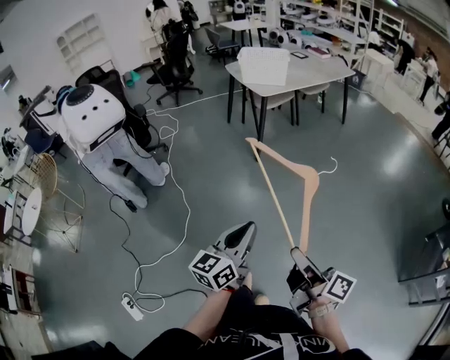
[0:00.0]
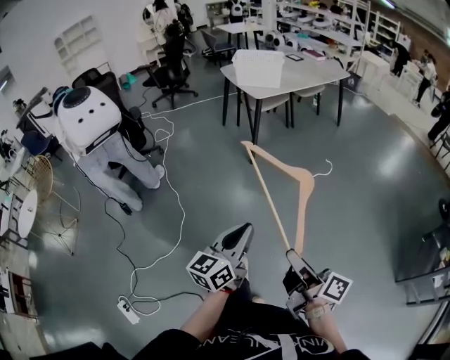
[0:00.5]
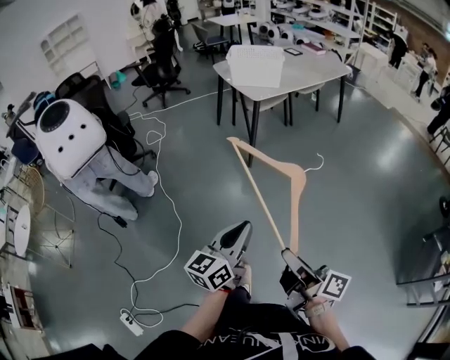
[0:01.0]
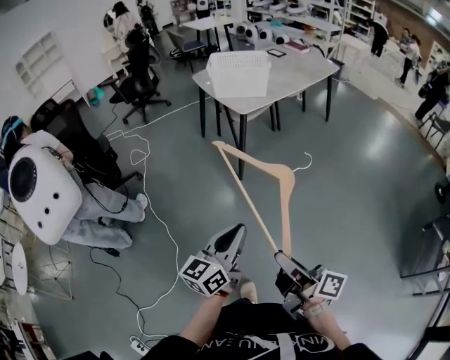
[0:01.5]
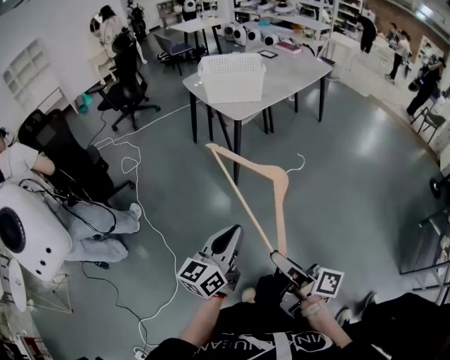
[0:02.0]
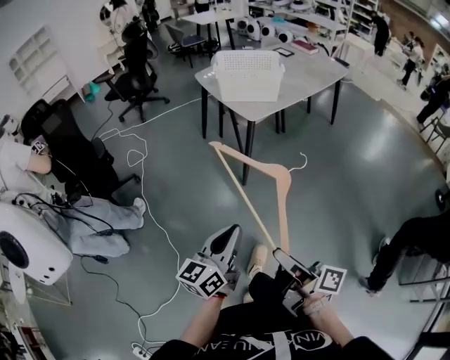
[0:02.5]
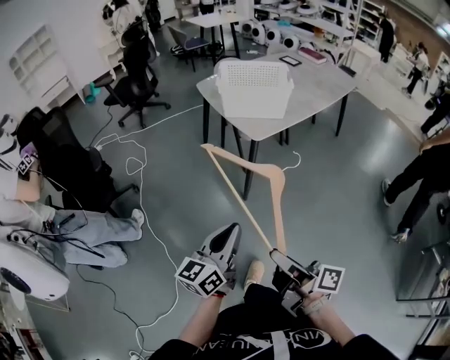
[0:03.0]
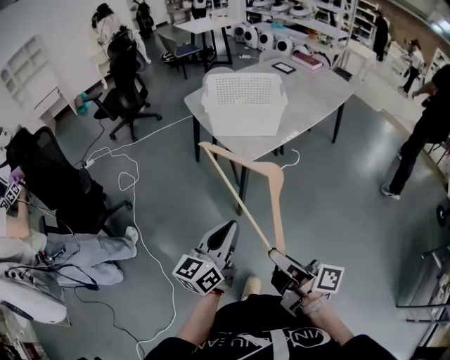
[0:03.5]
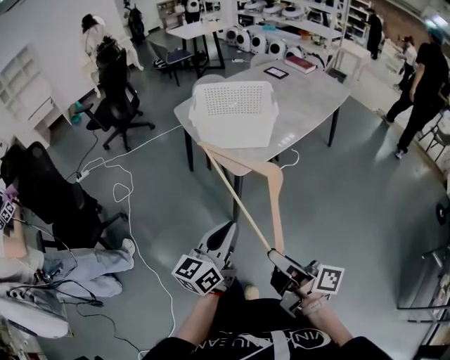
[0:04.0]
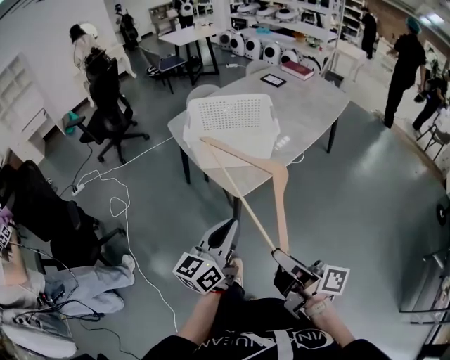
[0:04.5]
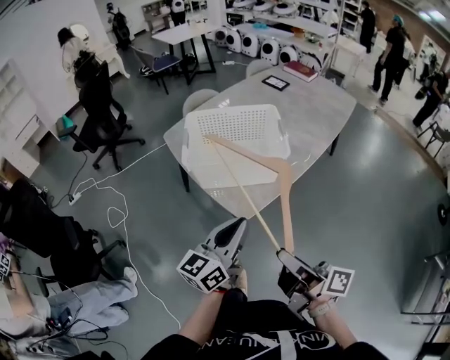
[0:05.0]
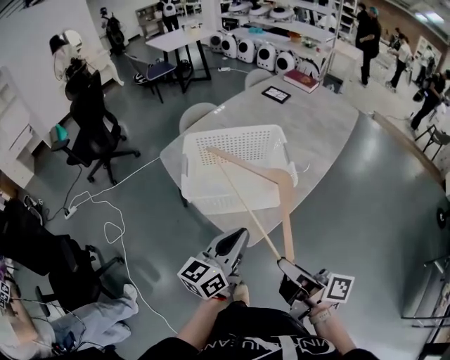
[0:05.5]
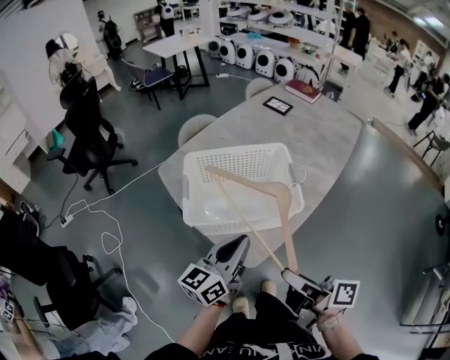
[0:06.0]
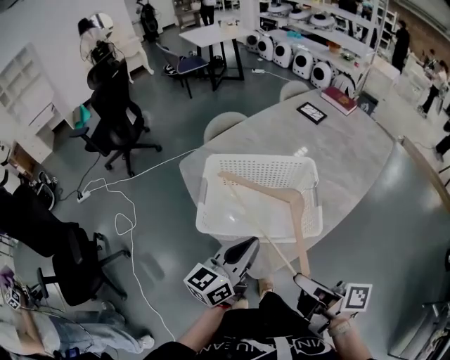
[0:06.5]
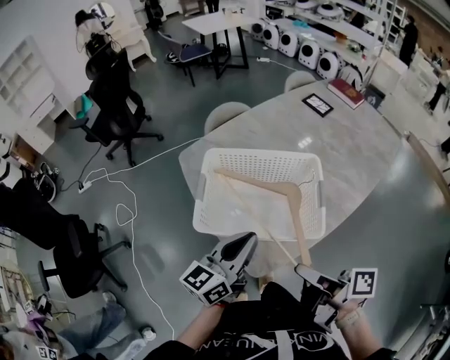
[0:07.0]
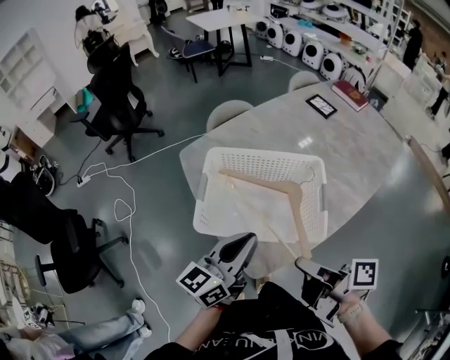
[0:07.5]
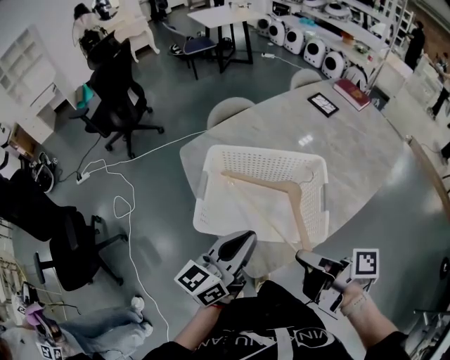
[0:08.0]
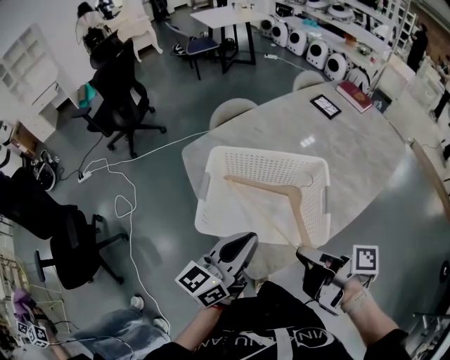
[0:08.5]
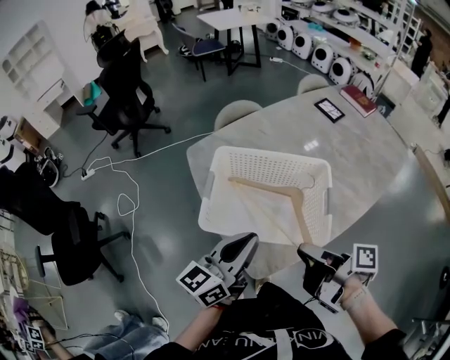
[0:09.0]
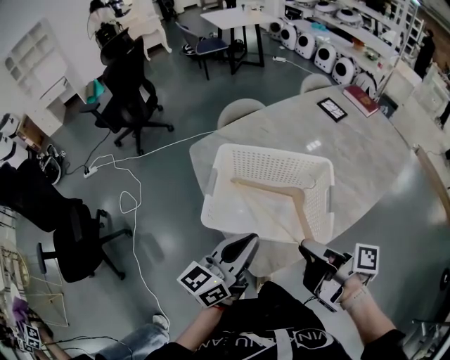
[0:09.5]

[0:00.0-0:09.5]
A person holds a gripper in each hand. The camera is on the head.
0.0 to 2.0 s: The left gripper ends up approximately 30 cm from where it was.
2.0 to 4.0 s: The left gripper changes place by roughly 35 cm.
4.0 to 5.5 s: The left gripper moves roughly 30 cm.
5.5 to 7.5 s: The left gripper changes place by some 10 cm.

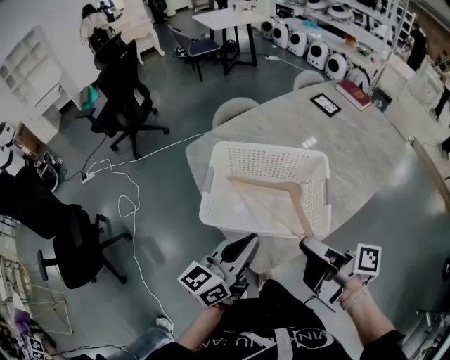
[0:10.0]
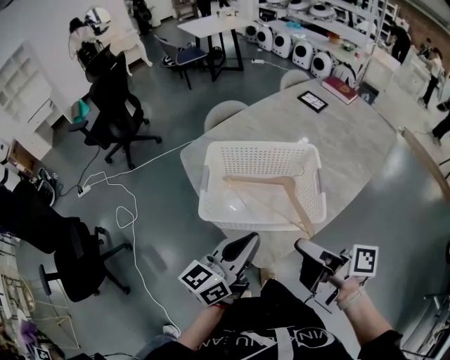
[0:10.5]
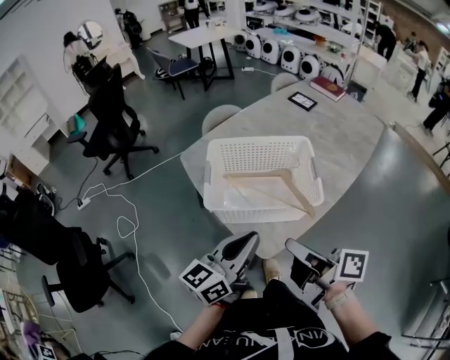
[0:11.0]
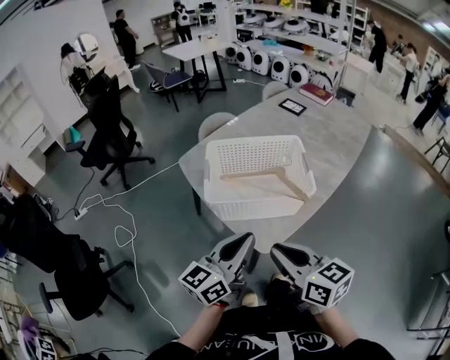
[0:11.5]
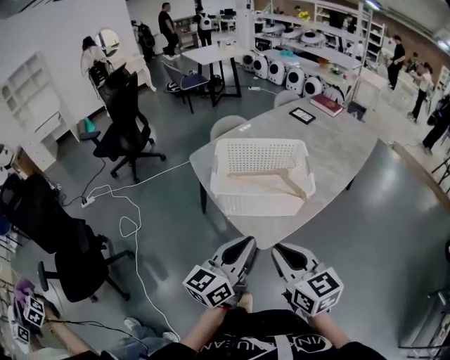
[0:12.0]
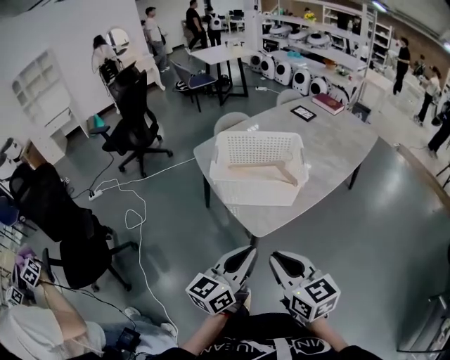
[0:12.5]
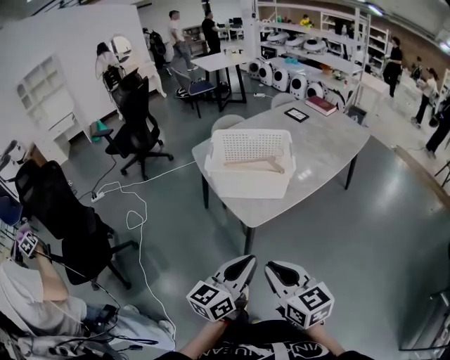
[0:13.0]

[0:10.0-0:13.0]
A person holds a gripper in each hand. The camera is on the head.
10.0 to 11.5 s: The left gripper moves approximately 10 cm.
11.5 to 13.0 s: The left gripper shifts by roughly 20 cm.

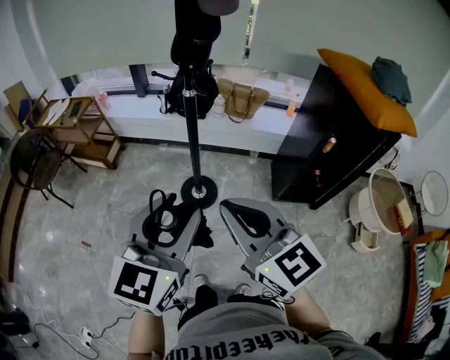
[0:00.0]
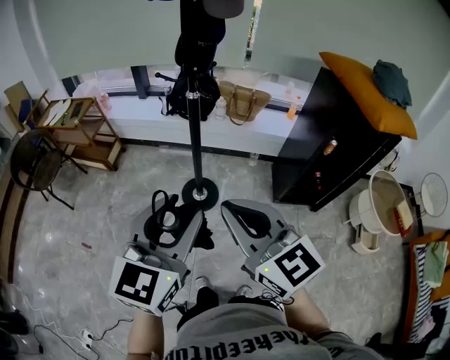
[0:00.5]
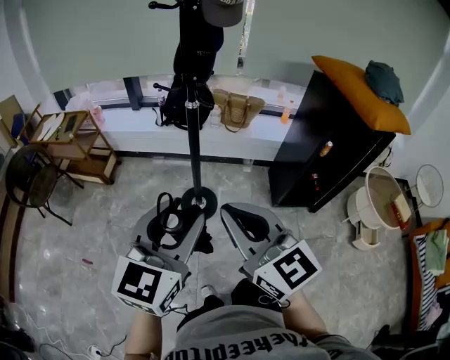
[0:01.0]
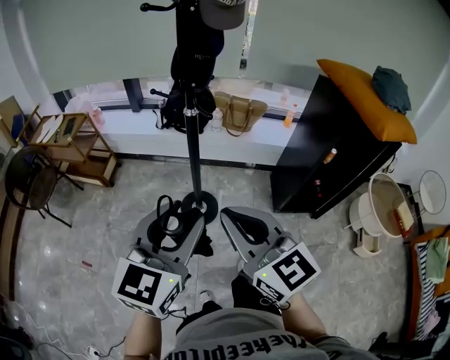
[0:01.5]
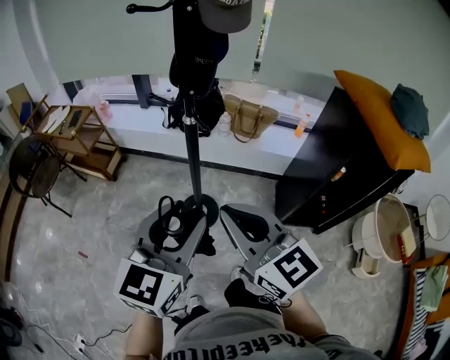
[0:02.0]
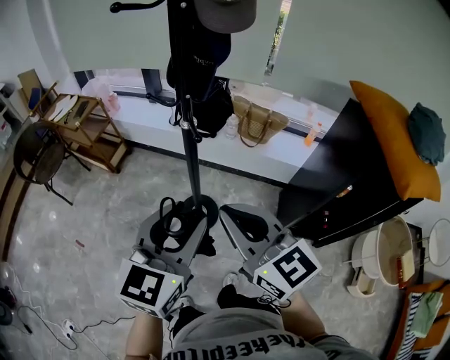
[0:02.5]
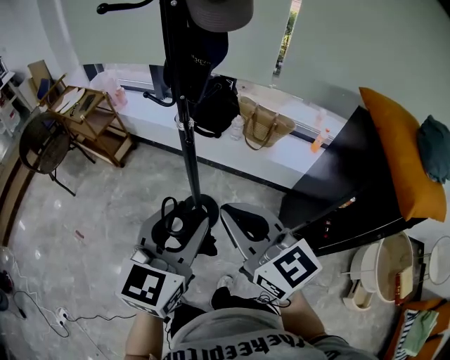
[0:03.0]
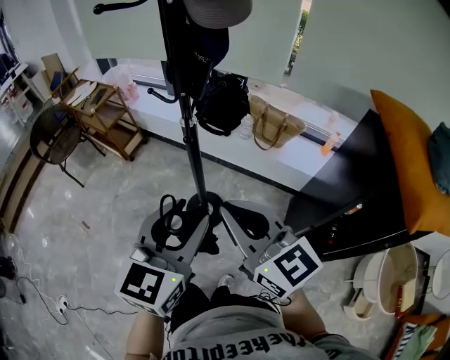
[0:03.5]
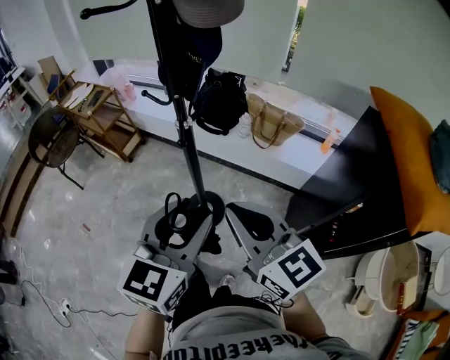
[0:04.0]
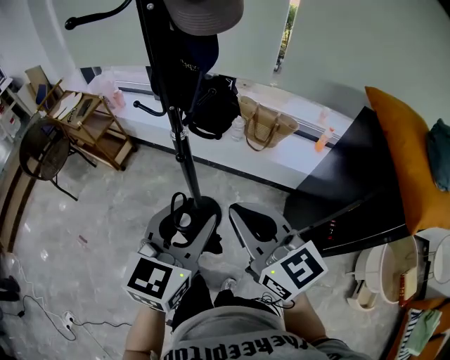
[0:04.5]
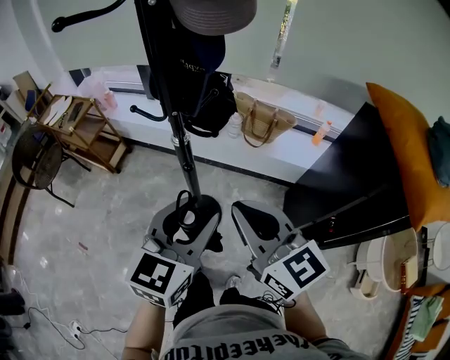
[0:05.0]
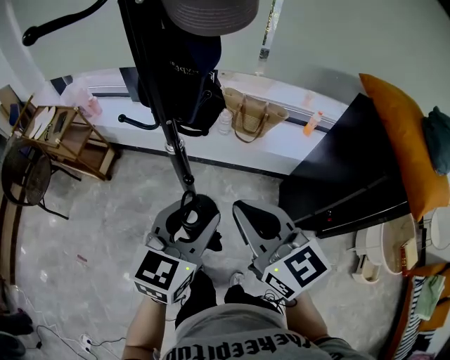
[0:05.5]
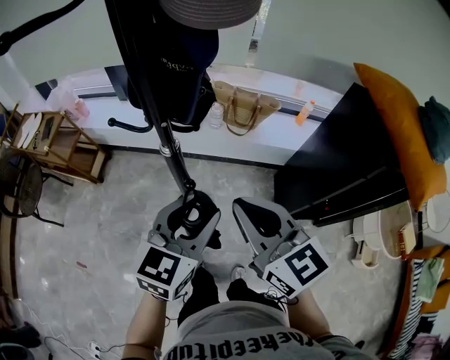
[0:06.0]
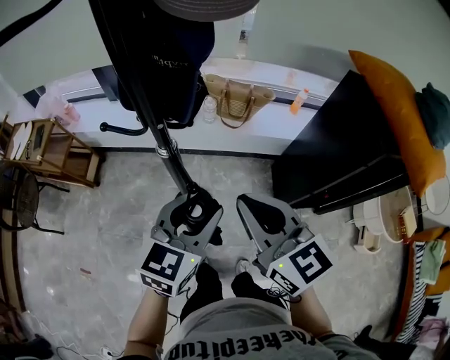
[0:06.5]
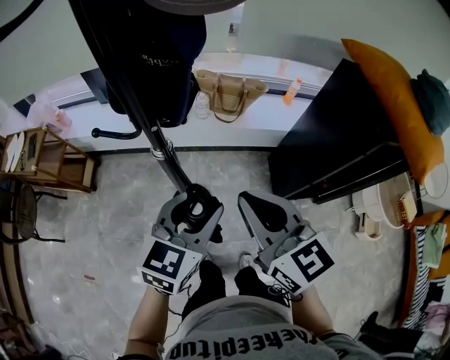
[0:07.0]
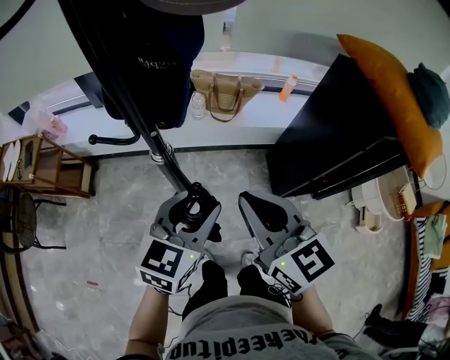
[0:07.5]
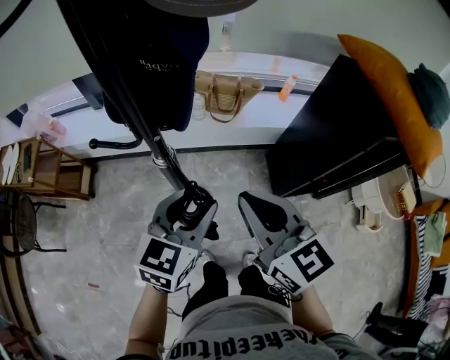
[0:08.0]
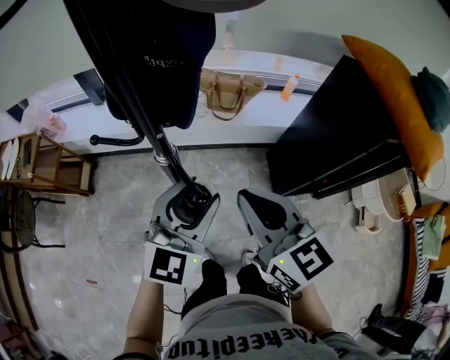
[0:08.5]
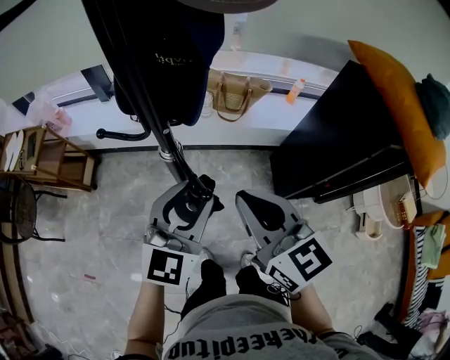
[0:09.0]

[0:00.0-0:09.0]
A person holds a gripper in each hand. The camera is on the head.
0.0 to 2.0 s: The two grippers go approximately 10 cm forward.
2.0 to 4.5 s: Both grippers move to the right and forward, some 15 cm.
4.5 to 7.0 s: The left gripper changes place by approximately 15 cm, and turns by some 30 degrees; the right gripper shifts by approximately 10 cm, and rotates approximately 20 degrees.

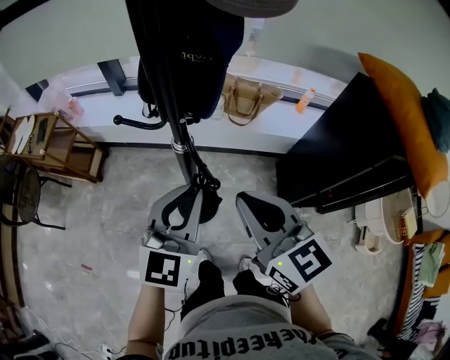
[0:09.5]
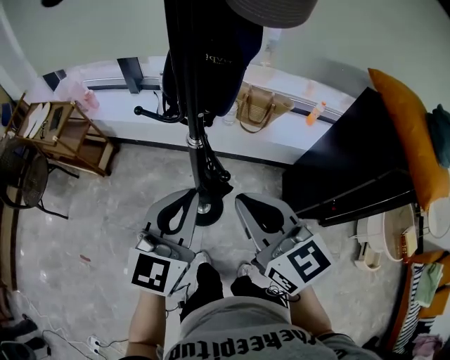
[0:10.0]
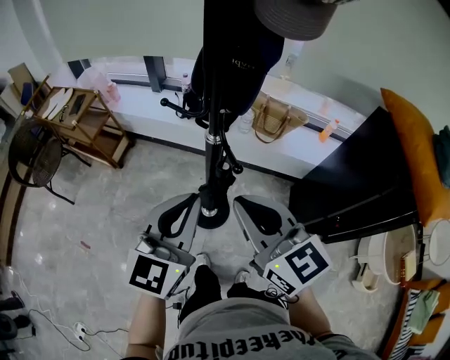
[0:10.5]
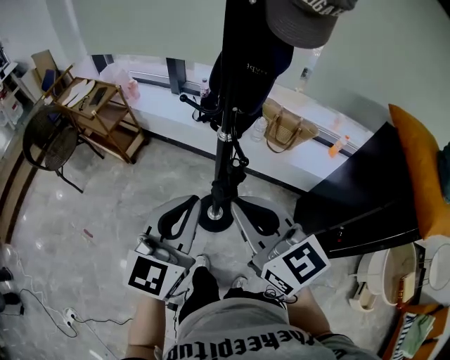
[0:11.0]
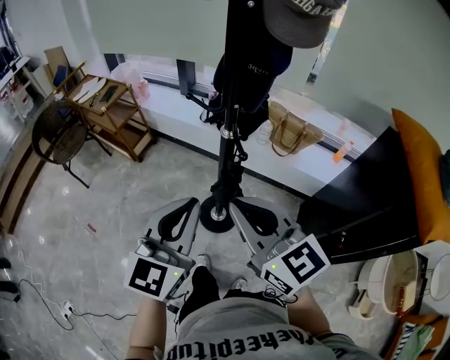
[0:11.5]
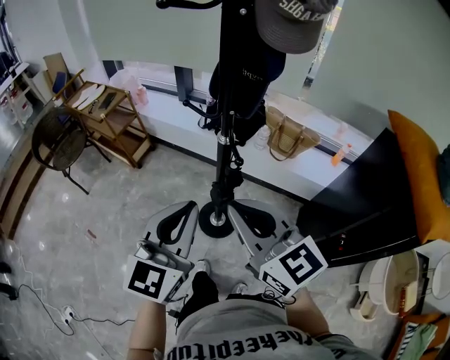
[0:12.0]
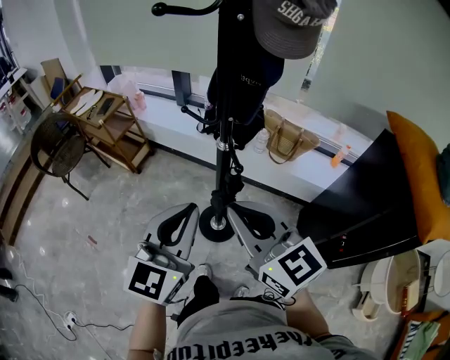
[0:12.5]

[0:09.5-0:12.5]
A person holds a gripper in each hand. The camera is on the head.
9.5 to 11.0 s: The left gripper goes some 15 cm backward, to the left and upward, while the right gripper travels backward and to the left by roughly 10 cm, and changes its angle by approximately 20 degrees.
11.0 to 12.5 s: The grippers make only small movements.

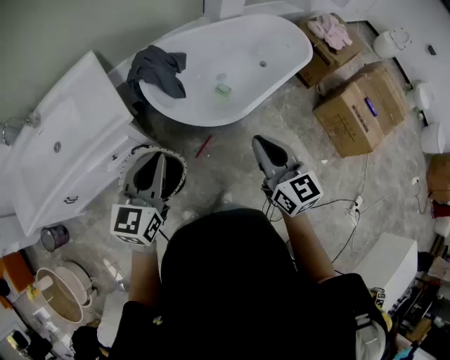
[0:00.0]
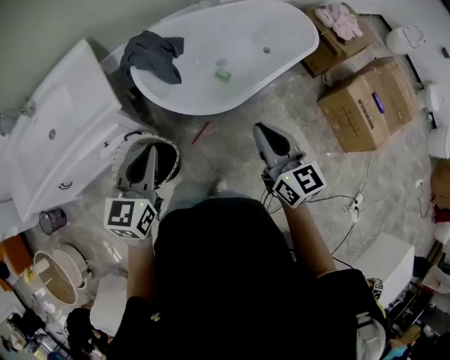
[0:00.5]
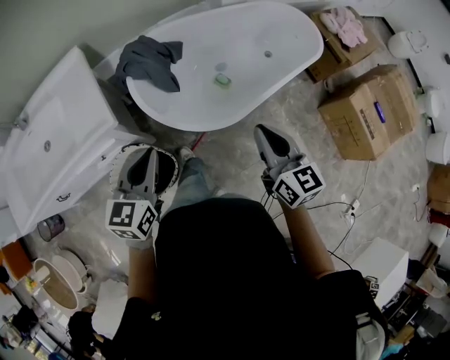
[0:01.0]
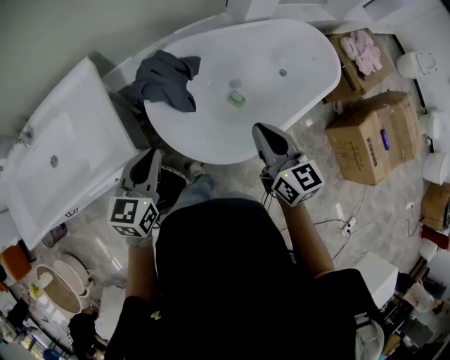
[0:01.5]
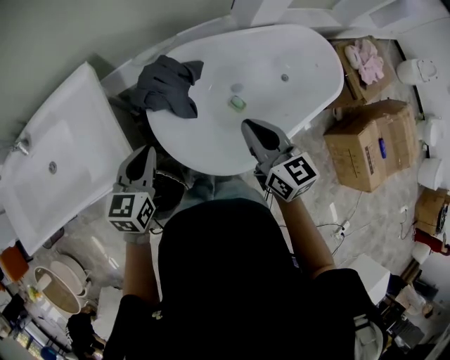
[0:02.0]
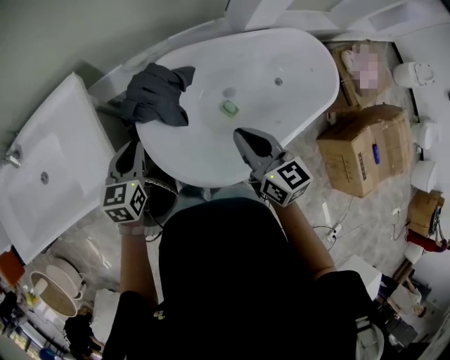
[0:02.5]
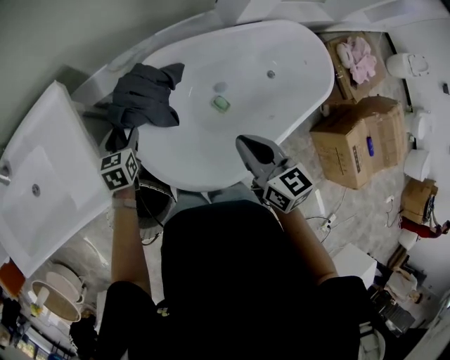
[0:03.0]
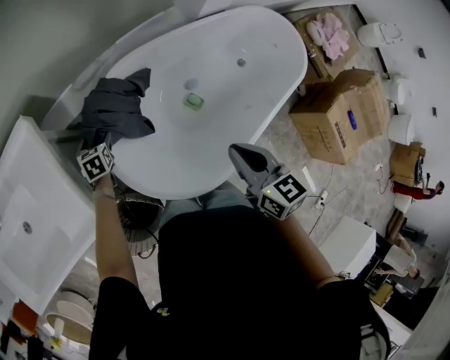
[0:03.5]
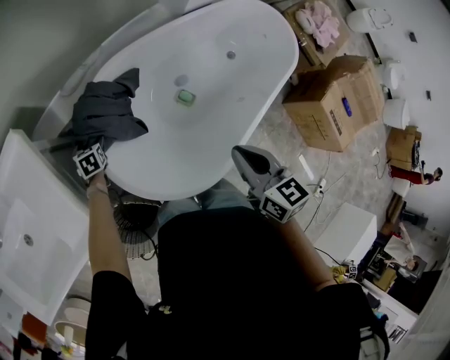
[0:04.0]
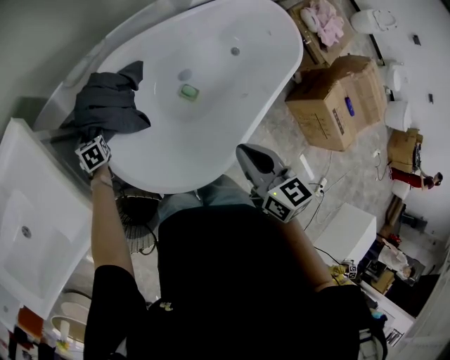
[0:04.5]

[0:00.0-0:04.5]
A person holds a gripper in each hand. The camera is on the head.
0.0 to 2.0 s: Both grippers move forward, approximately 35 cm.
2.0 to 4.5 s: The right gripper travels downward and to the right by approximately 15 cm, and swivels approximately 20 degrees; the left gripper moves downward and forward, about 40 cm, tips its fingers downward by roughly 30 degrees, and opens up.
